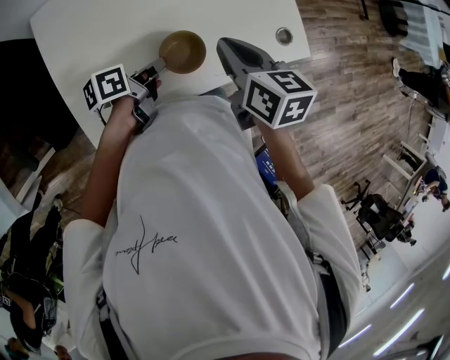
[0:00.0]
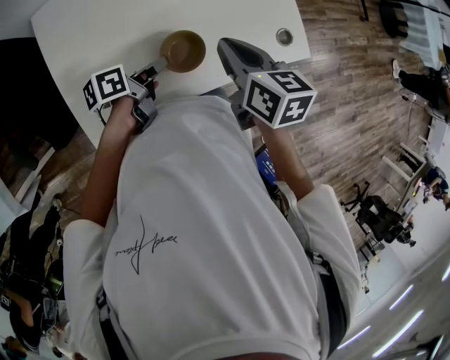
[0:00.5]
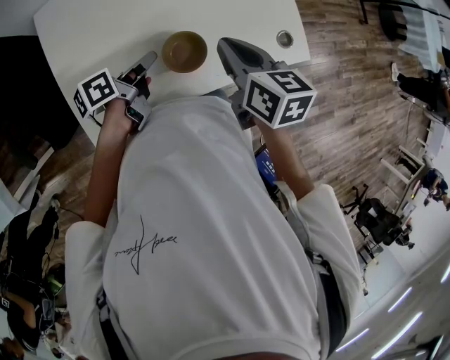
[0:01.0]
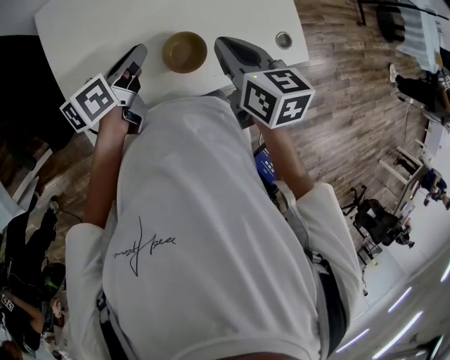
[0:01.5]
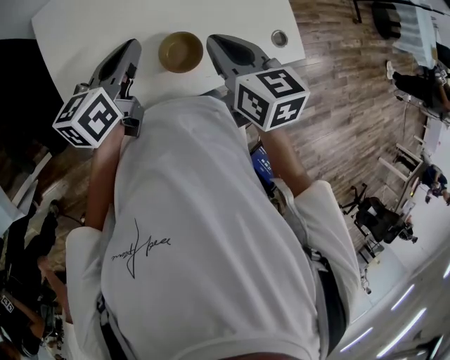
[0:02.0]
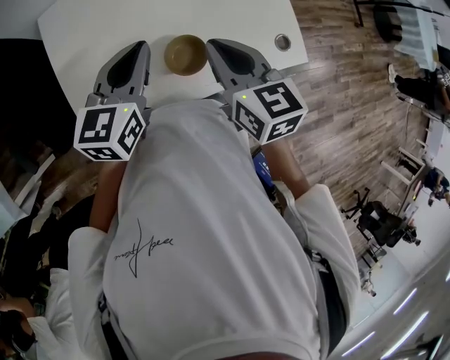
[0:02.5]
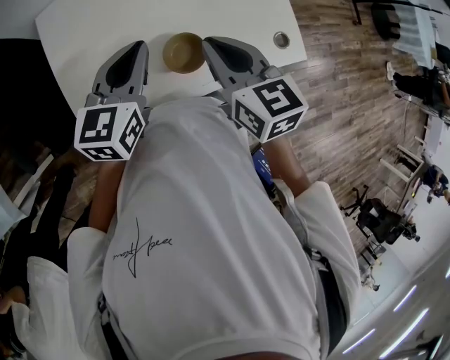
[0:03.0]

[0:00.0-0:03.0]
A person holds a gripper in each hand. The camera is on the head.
0:00.0 to 0:01.5: The left gripper shifts about 10 cm upward and to the left, and changes its angle by some 20 degrees.
0:01.5 to 0:03.0: The right gripper shifts by about 5 cm, while the left gripper goes roughly 10 cm upward, and rolls clockwise, seen from behind, by some 40 degrees.

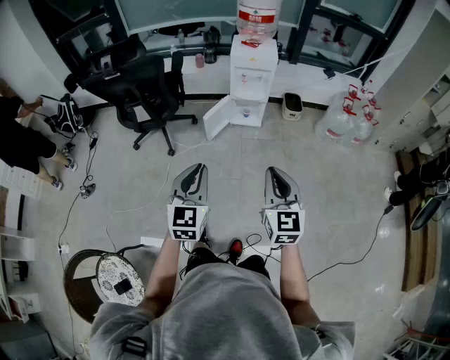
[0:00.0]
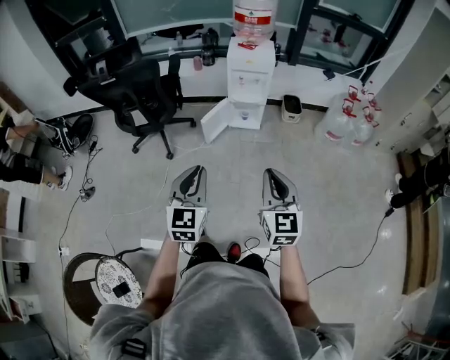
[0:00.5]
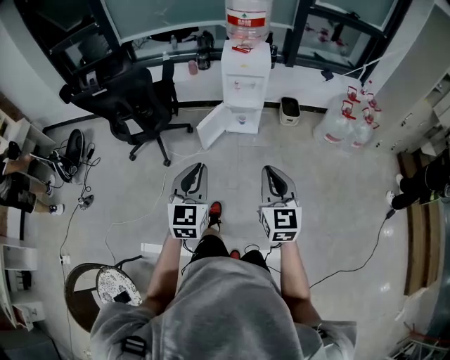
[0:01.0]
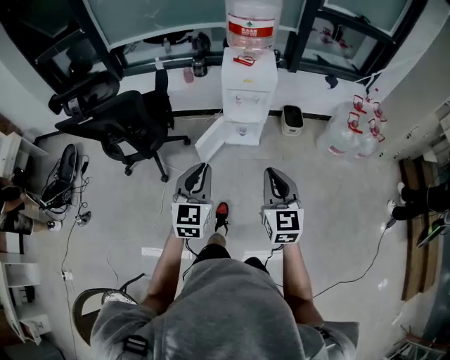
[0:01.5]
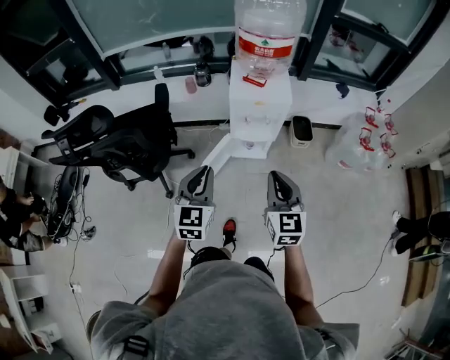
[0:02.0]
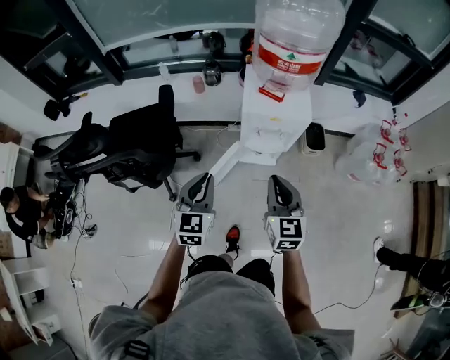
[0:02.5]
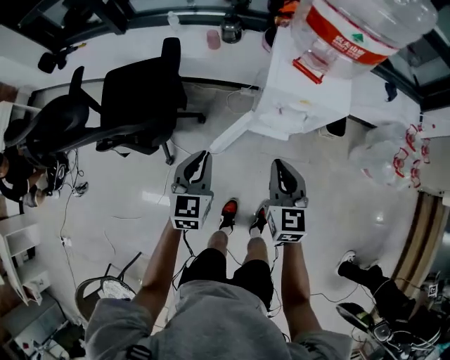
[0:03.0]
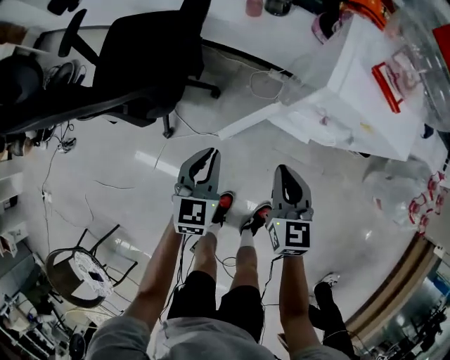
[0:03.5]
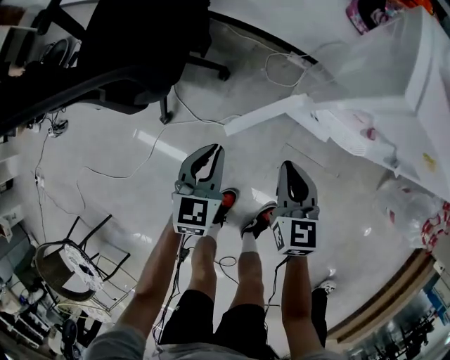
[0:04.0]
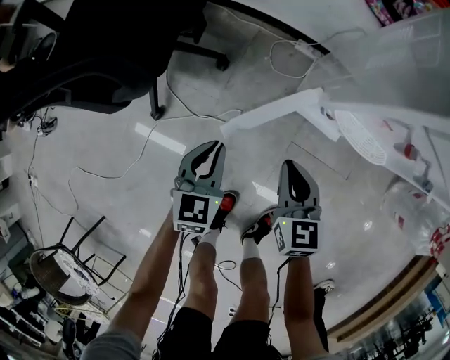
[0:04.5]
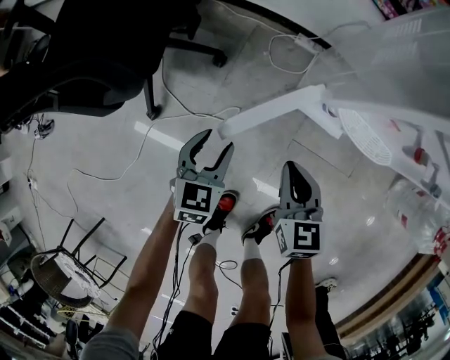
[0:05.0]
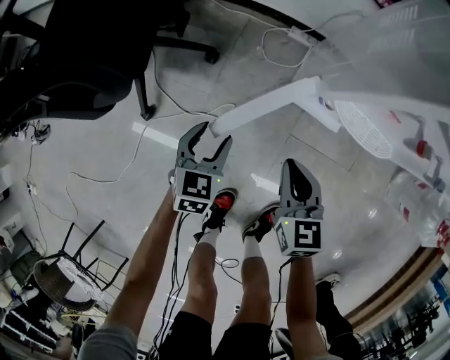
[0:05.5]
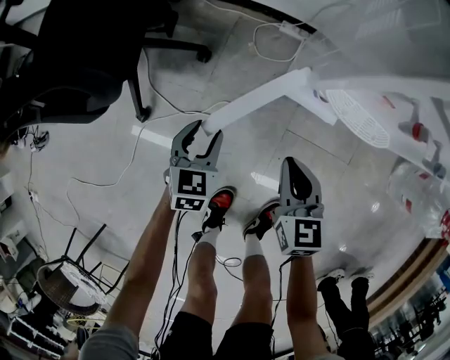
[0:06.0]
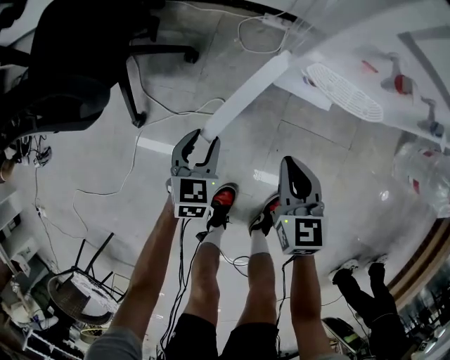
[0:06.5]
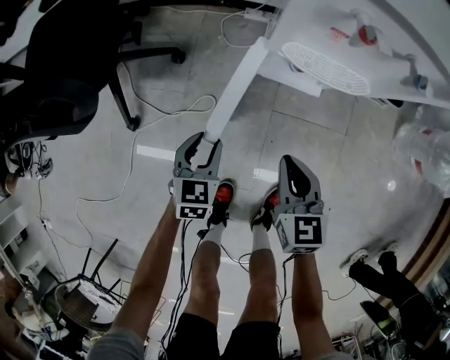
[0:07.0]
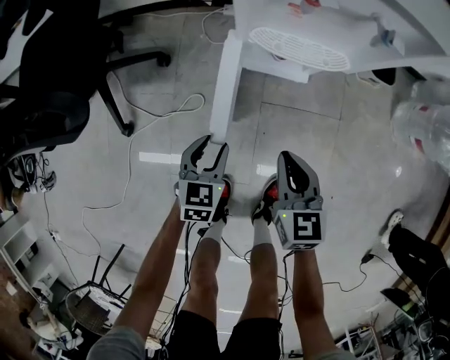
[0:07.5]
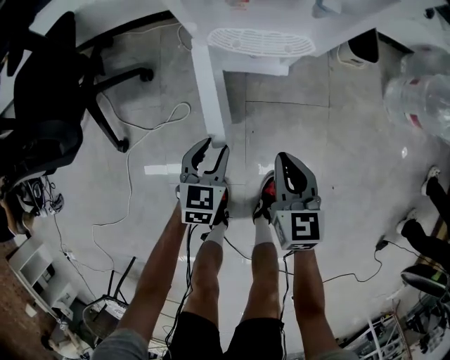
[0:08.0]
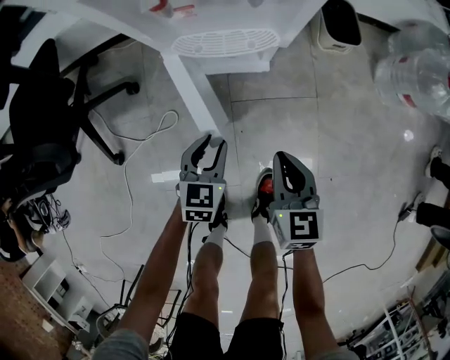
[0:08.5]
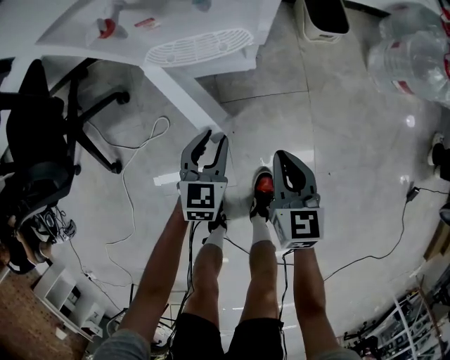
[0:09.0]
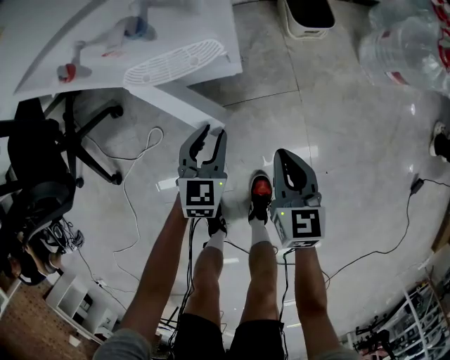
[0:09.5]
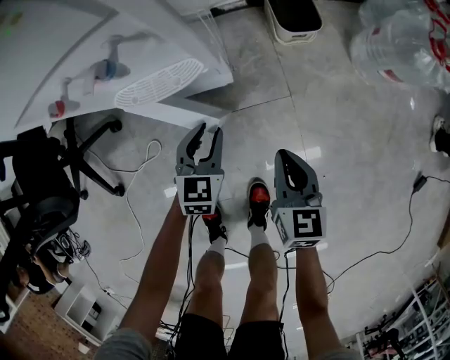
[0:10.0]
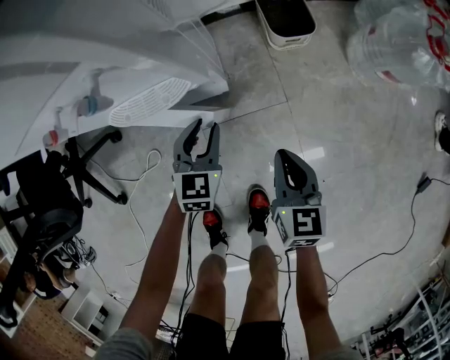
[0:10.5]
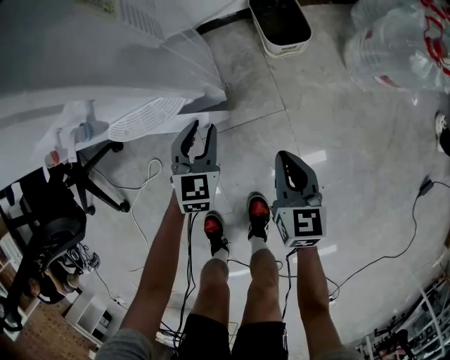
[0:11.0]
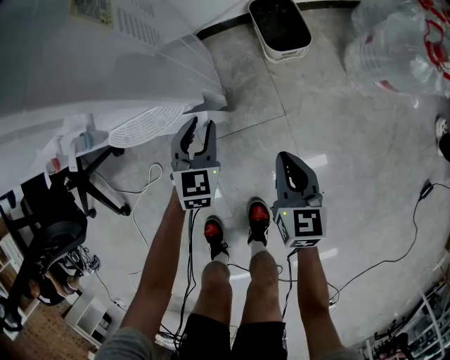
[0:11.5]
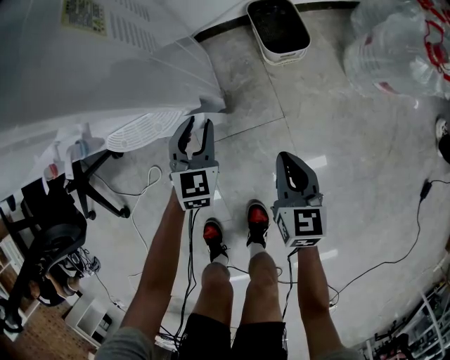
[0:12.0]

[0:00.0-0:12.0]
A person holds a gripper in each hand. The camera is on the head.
0:00.0 to 0:02.0: The pair of grippers is taken forward, some 40 cm.
0:02.0 to 0:04.0: The right gripper shifts approximately 50 cm downward and forward, and swivels some 30 degrees; the left gripper travels downward by about 40 cm, and swivels some 30 degrees.
0:04.0 to 0:06.0: The grippers both shift downward by approximately 15 cm. The left gripper opens its fingers.
0:06.0 to 0:08.0: The two grippers go approximately 20 cm to the right and backward.
0:08.0 to 0:10.0: The left gripper moves to the right and forward, approximately 20 cm. The right gripper is displaced to the right by approximately 15 cm.
0:10.0 to 0:12.0: The left gripper heads forward, covering approximately 10 cm. The right gripper heads forward and to the right, covering about 10 cm.

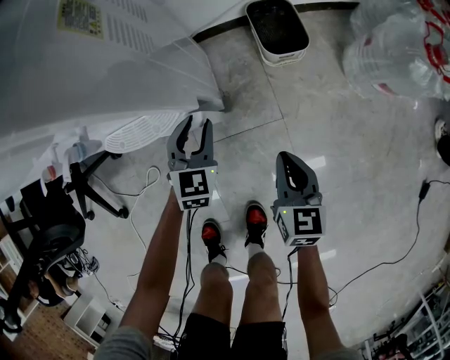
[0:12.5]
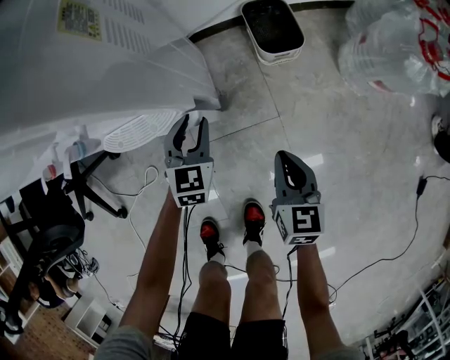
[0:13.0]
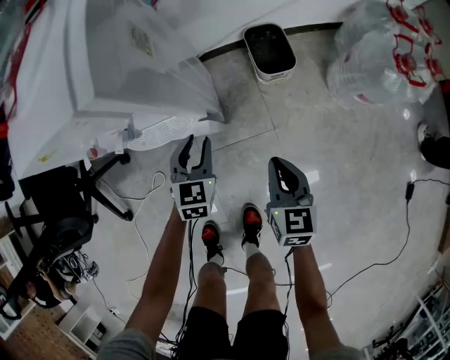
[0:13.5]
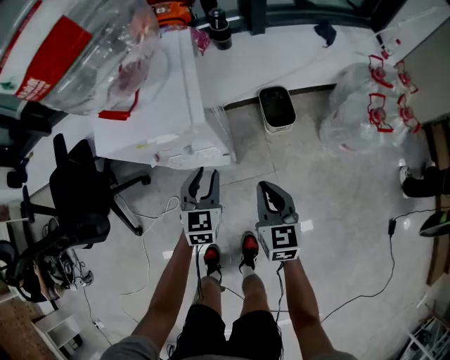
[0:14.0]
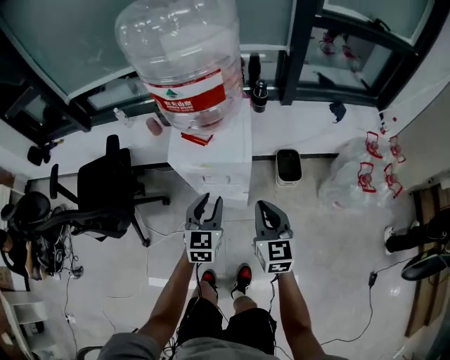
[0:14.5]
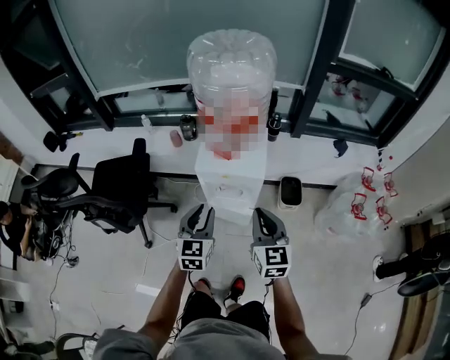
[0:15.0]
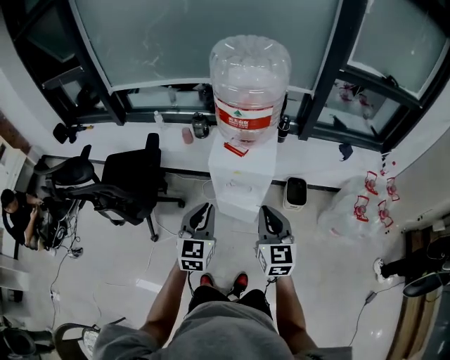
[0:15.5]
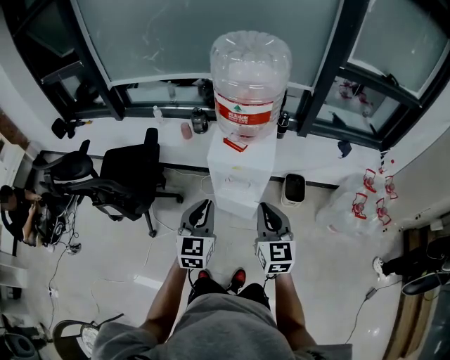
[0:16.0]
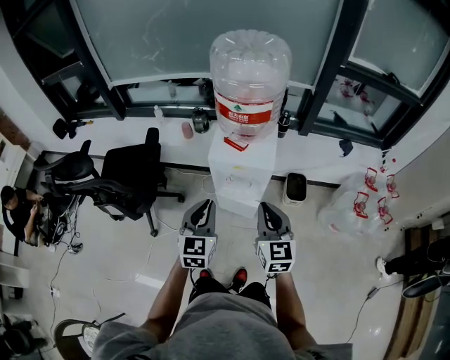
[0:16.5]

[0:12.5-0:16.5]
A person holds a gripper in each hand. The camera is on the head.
0:12.5 to 0:14.5: The two grippers go about 50 cm upward. The right gripper swivels approximately 30 degrees; the left gripper swivels about 20 degrees.
0:14.5 to 0:16.5: The grippers both shift upward, to the left and backward by approximately 20 cm. The left gripper closes its fingers.

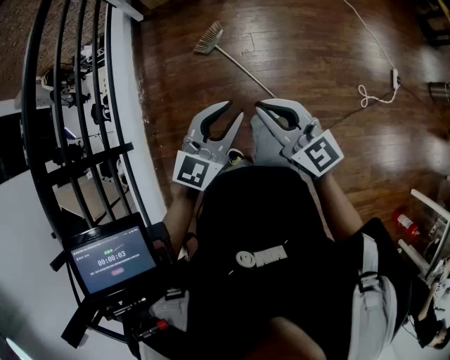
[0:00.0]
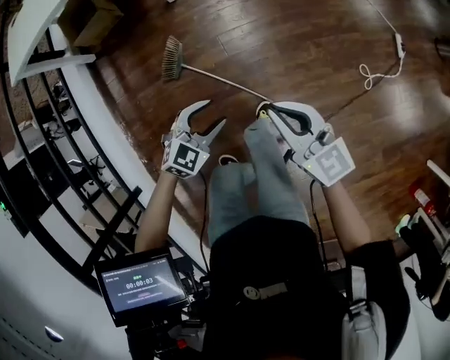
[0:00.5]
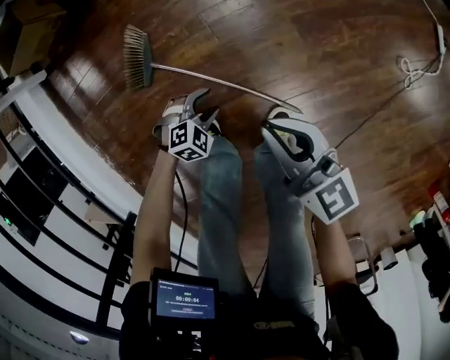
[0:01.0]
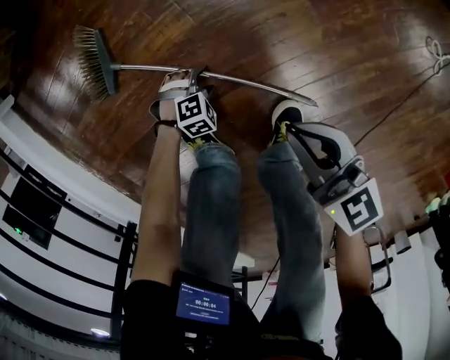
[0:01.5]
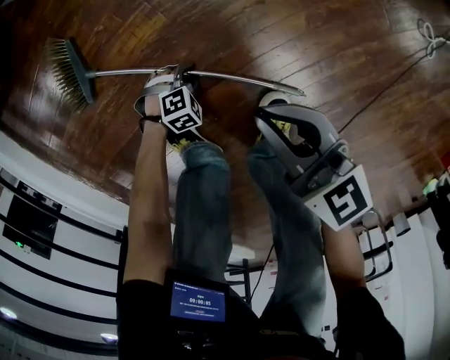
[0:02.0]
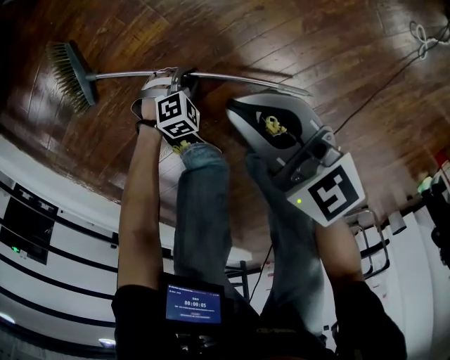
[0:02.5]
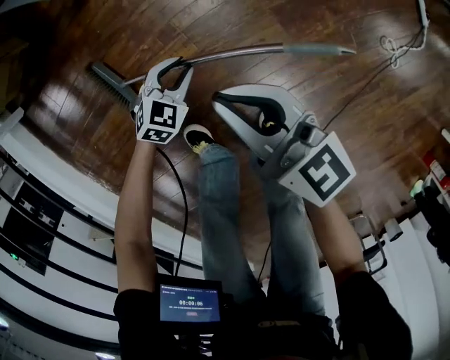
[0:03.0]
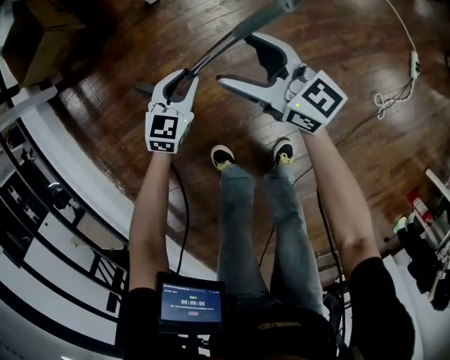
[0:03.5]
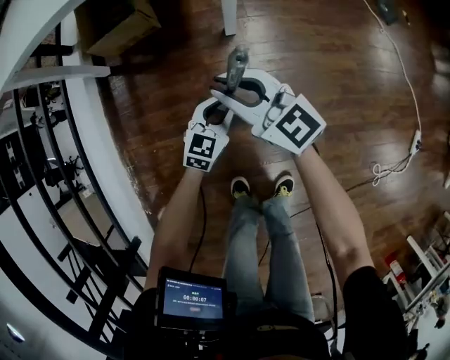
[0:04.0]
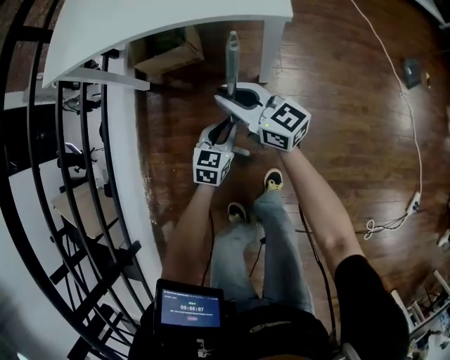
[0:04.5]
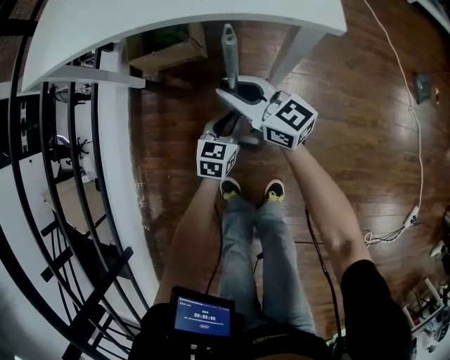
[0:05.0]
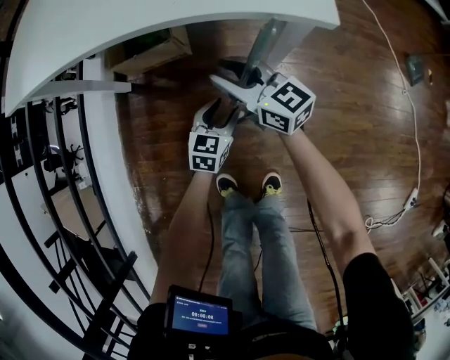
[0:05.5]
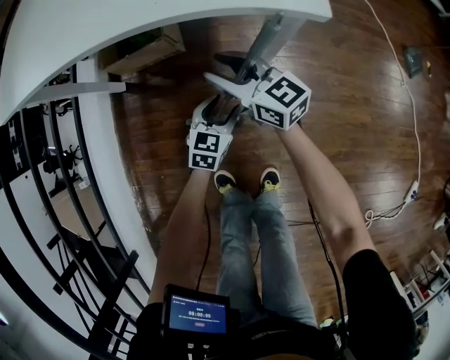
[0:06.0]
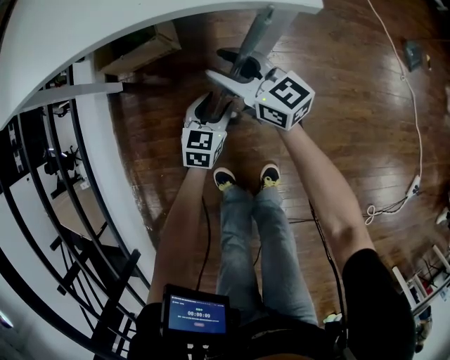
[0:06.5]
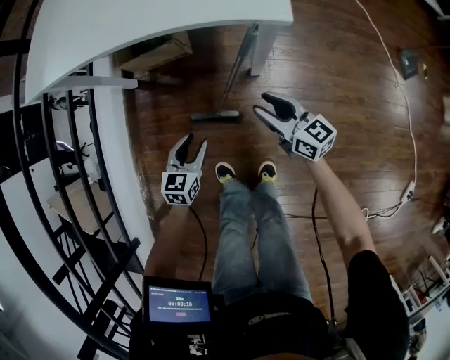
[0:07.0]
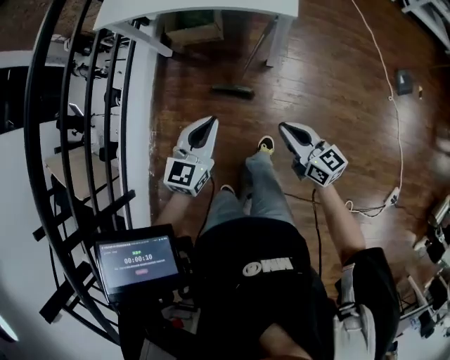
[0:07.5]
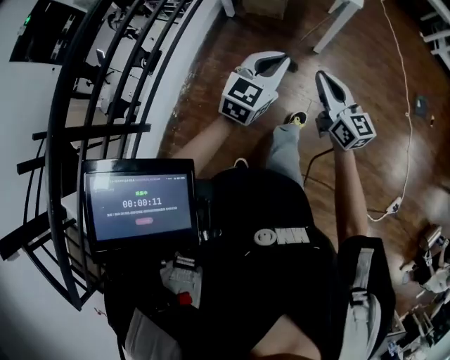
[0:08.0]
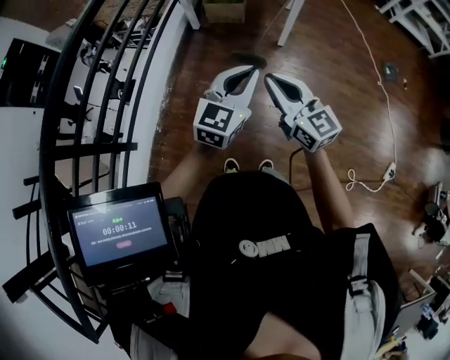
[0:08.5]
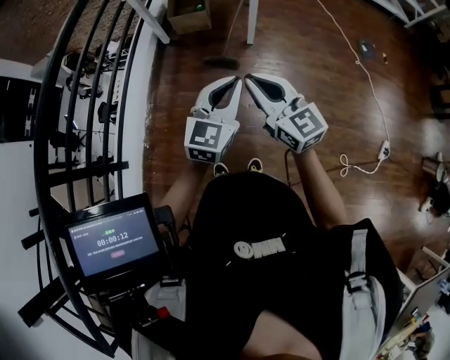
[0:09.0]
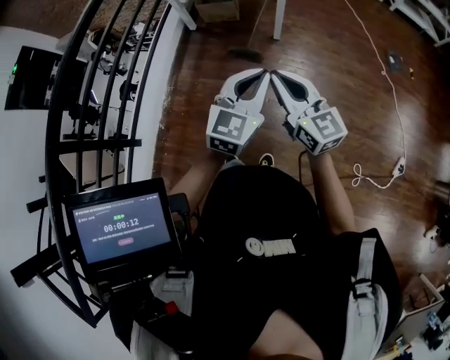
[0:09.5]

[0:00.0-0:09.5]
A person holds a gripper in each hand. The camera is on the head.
0:00.0 to 0:02.0: Both grippers travel together downward, approximately 80 cm. The left gripper tips its fingers downward by approximately 70 degrees, and opens, then closes once more, while the right gripper changes its angle by roughly 30 degrees.
0:02.0 to 0:04.0: The two grippers travel together, about 50 cm. The left gripper goes some 50 cm upward, and points its fingers about 50 degrees further upward; the right gripper swivels roughly 40 degrees, and opens, then closes once more.
0:04.0 to 0:05.5: Both grippers travel together forward, some 25 cm. The left gripper opens up.
0:05.5 to 0:07.5: The left gripper shifts about 50 cm upward and backward, and closes up; the right gripper is displaced backward and upward by roughly 40 cm, and closes up.
0:07.5 to 0:09.5: Both grippers travel together backward and upward, about 40 cm. The right gripper turns by some 30 degrees.
